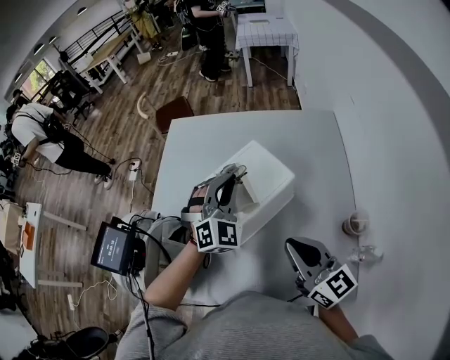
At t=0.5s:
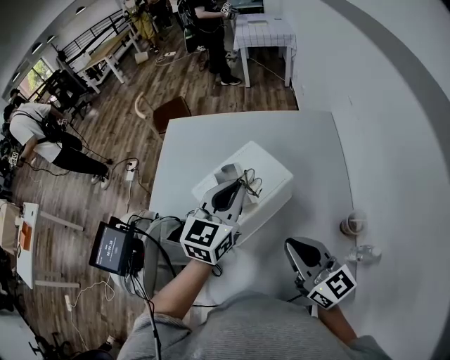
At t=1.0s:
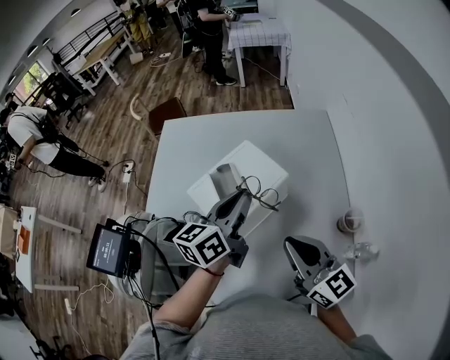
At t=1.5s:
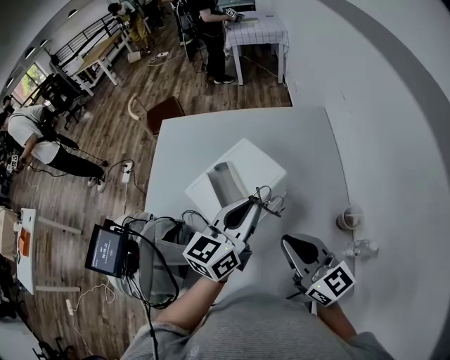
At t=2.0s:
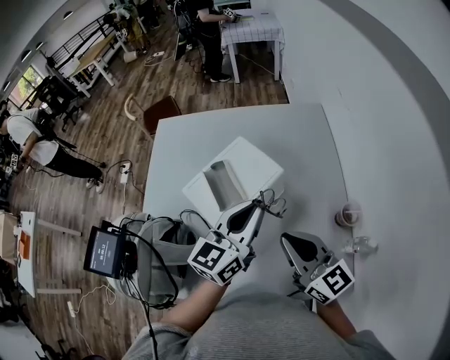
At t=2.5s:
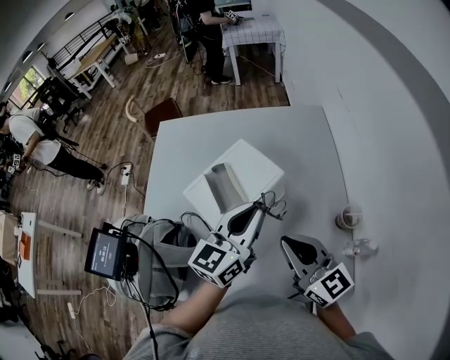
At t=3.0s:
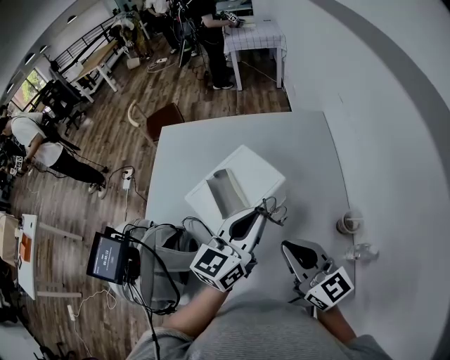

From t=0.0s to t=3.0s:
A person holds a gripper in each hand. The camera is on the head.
From t=0.0s to t=1.5s: The left gripper goes roughly 10 cm backward and to the right, and rolls counterclockwise, seen from behind, by some 70 degrees.
From t=1.5s to t=3.0s: The grippers move only a little.

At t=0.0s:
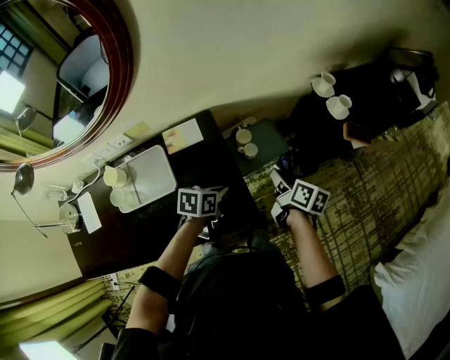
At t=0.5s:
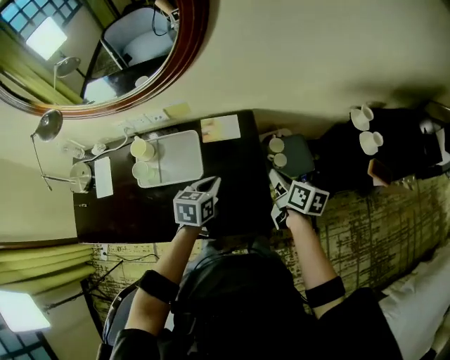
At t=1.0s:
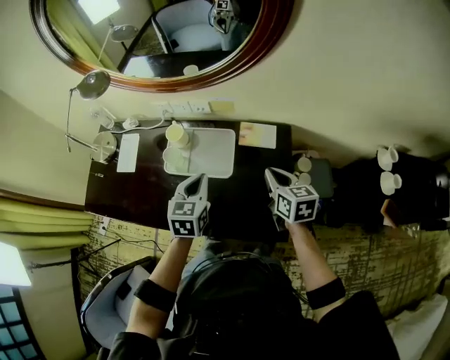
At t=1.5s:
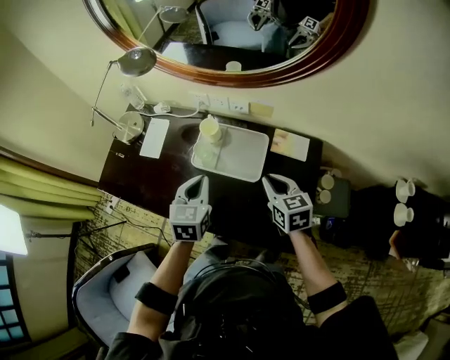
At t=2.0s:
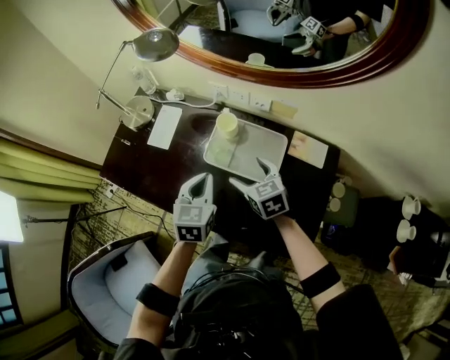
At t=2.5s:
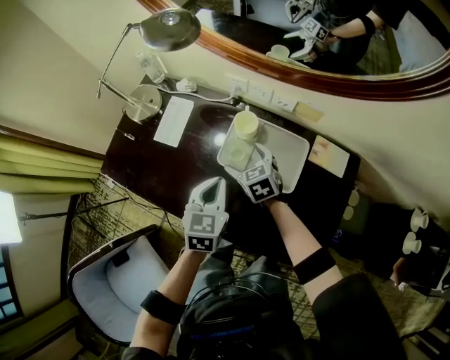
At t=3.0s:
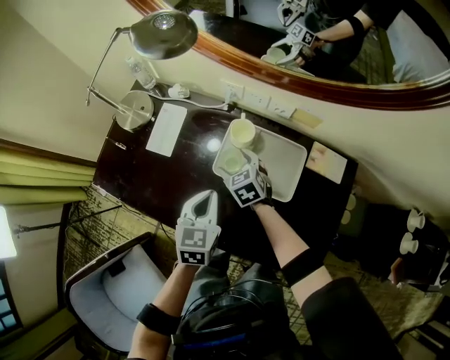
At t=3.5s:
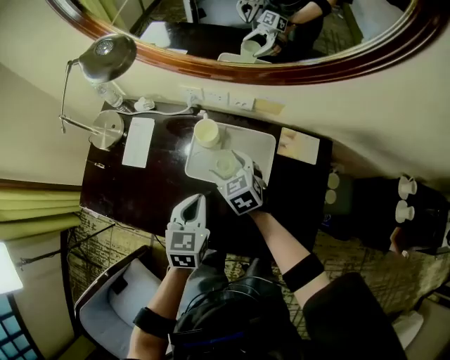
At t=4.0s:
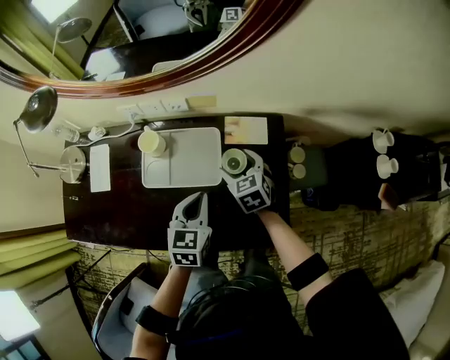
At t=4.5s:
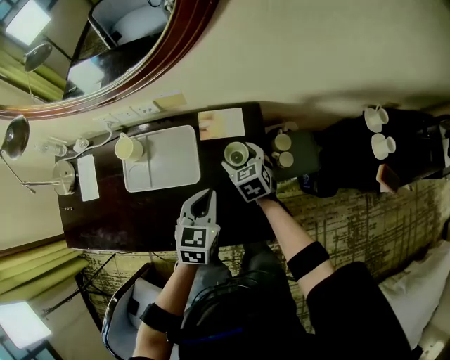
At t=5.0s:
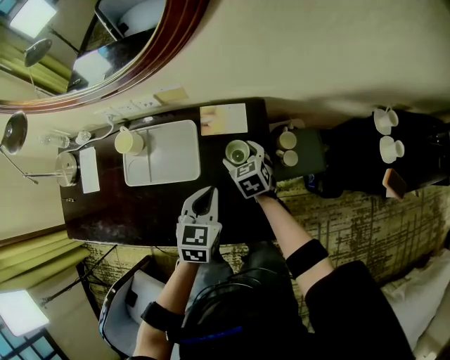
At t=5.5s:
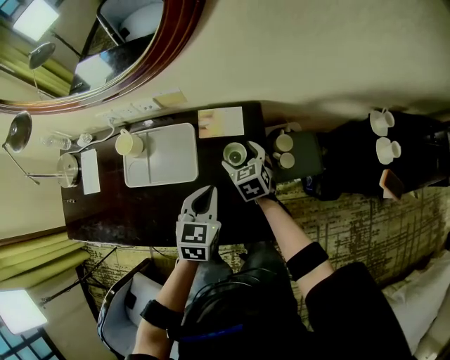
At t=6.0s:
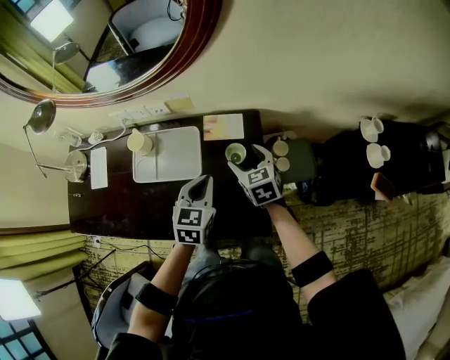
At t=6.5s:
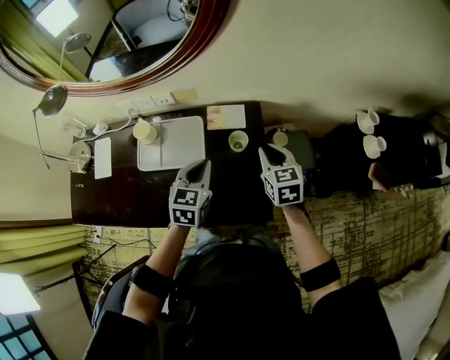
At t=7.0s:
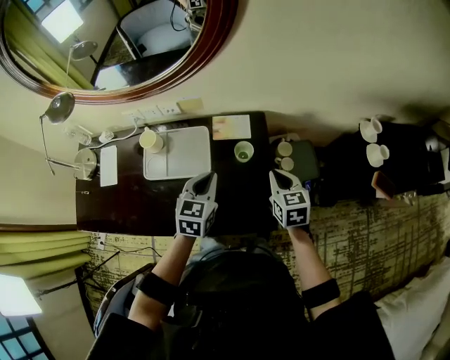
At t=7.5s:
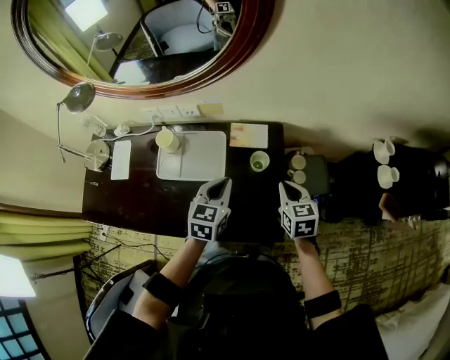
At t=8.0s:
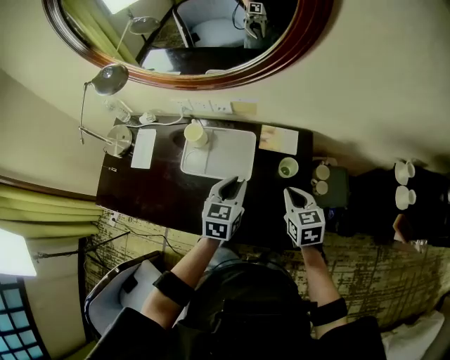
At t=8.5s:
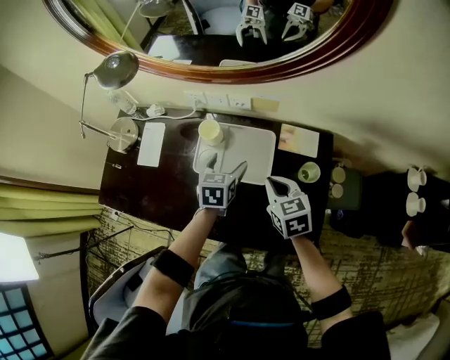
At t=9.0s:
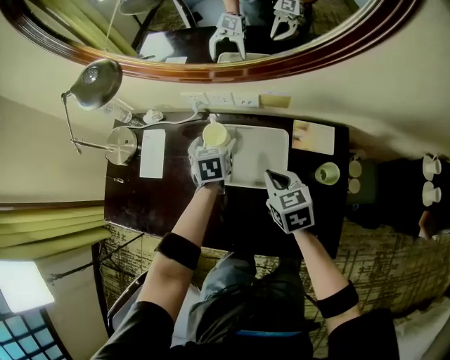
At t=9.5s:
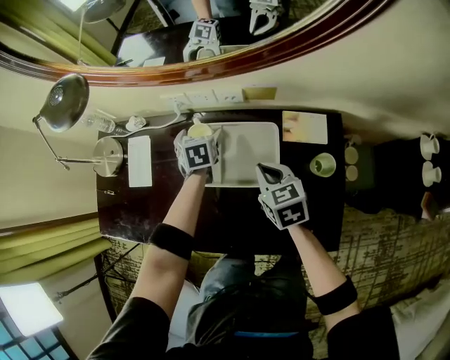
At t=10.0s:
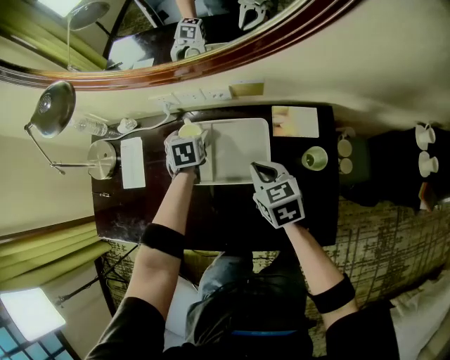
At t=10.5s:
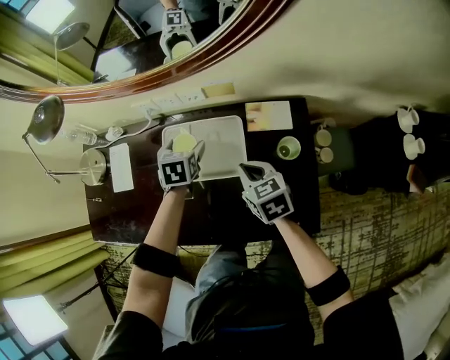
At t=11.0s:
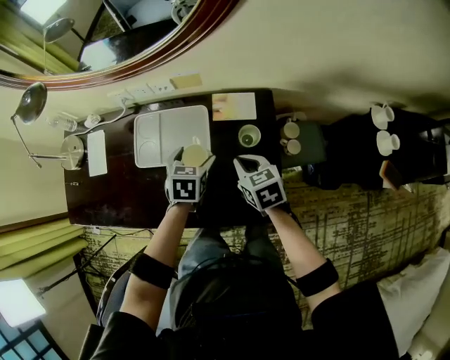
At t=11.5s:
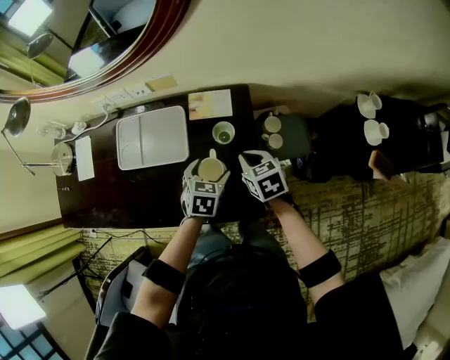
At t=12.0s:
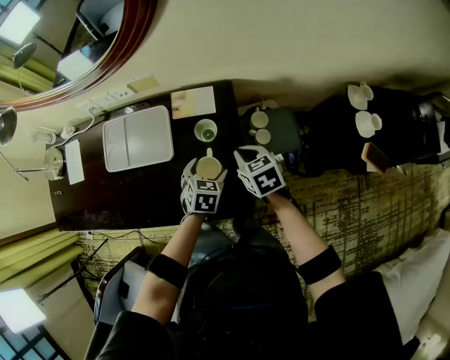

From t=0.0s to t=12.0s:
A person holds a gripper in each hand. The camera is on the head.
From t=0.0s to t=2.0s: Both grippers are carried some 50 cm. The left gripper swivels about 60 degrees. Meanwhile the right gripper rolls counterclockwise, seen from behind, by approximately 70 degrees, and opens up.
From t=2.0s to t=4.0s: The left gripper moves about 15 cm, and turns by some 20 degrees. Meanwhile the right gripper moves approximately 20 cm, and rotates roughly 20 degrees.
From t=4.0s to t=6.0s: The left gripper heads to the right, covering roughly 10 cm; the right gripper travels to the right and upward by roughly 15 cm.
From t=6.0s to t=8.0s: The right gripper is displaced backward by roughly 10 cm, goes to the right and returns, some 5 cm each way, and closes its fingers. Meanwhile the left gripper shifts about 10 cm to the left.
From t=8.0s to t=10.0s: The left gripper heads forward, to the left and downward, covering approximately 35 cm, rotates roughly 30 degrees, and opens its fingers. The right gripper goes roughly 20 cm to the left, forward and downward.
From t=10.0s to t=12.0s: The left gripper heads to the right and backward, covering roughly 50 cm, and changes its angle by some 30 degrees; the right gripper heads to the right and backward, covering about 30 cm.

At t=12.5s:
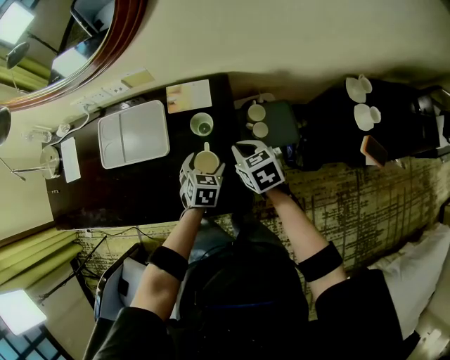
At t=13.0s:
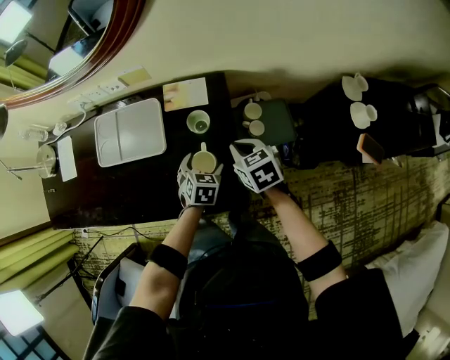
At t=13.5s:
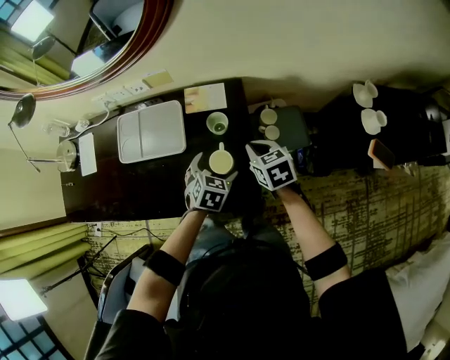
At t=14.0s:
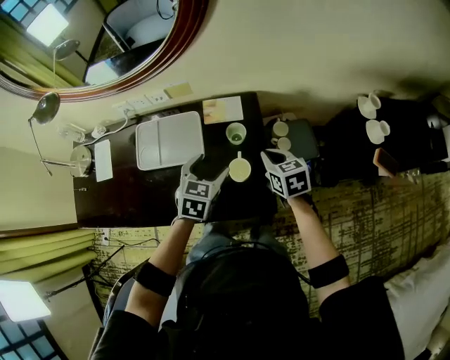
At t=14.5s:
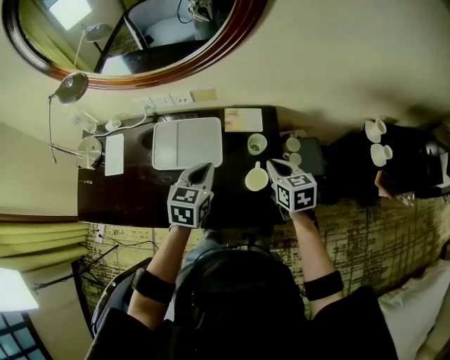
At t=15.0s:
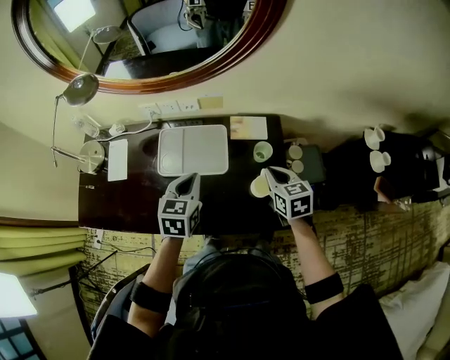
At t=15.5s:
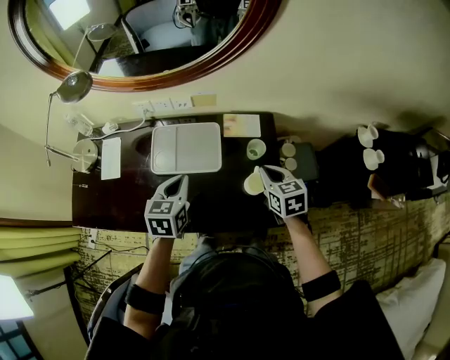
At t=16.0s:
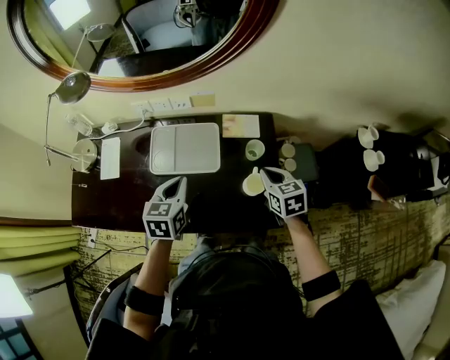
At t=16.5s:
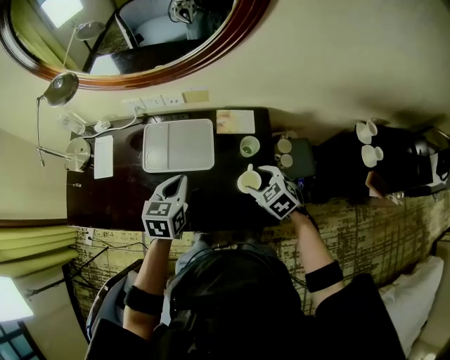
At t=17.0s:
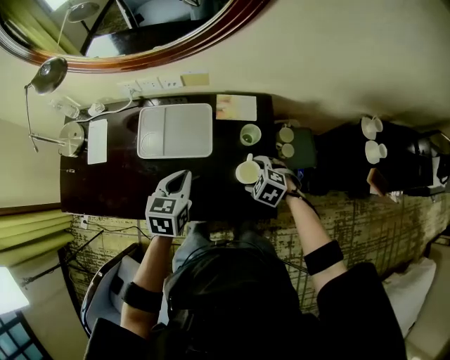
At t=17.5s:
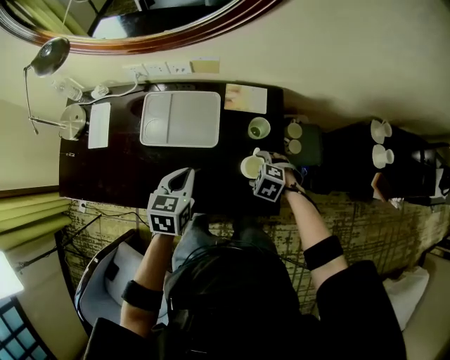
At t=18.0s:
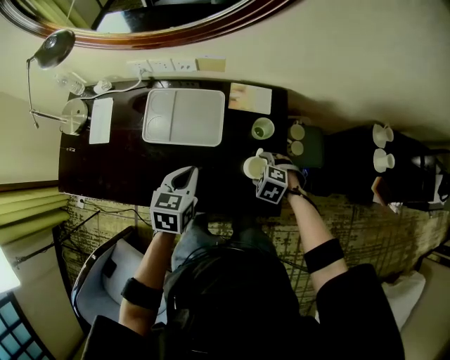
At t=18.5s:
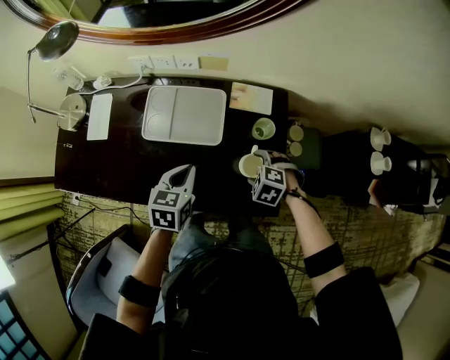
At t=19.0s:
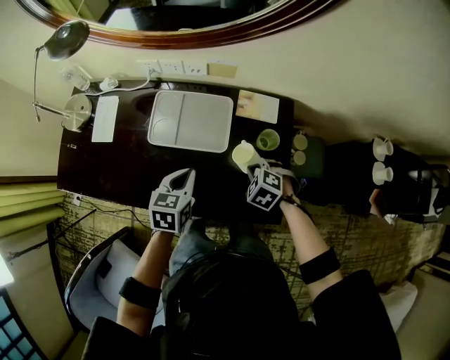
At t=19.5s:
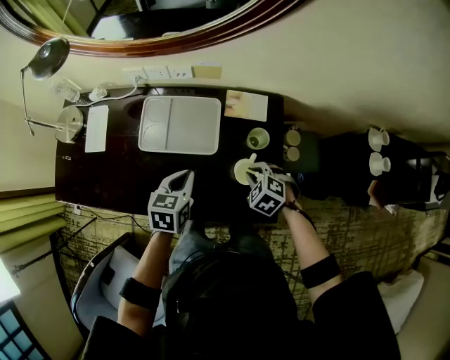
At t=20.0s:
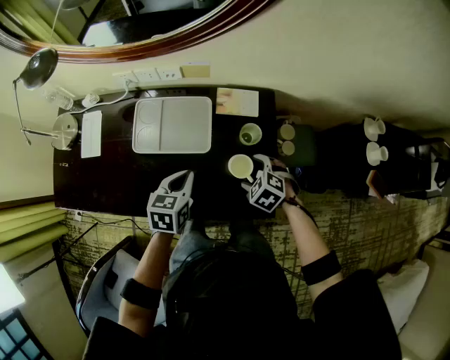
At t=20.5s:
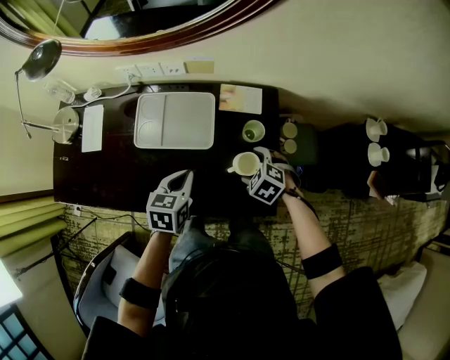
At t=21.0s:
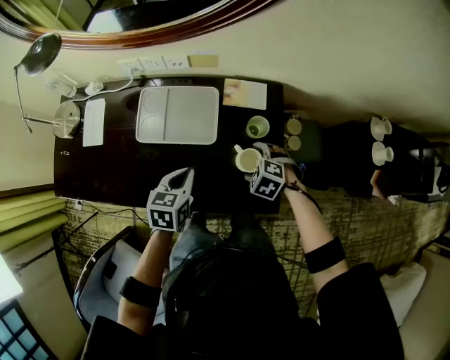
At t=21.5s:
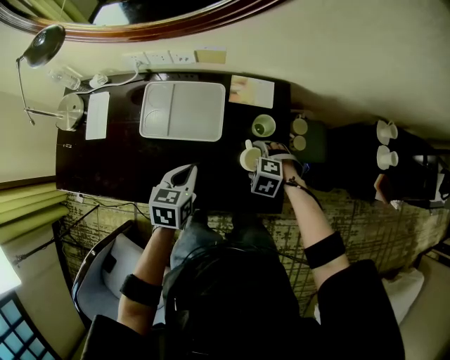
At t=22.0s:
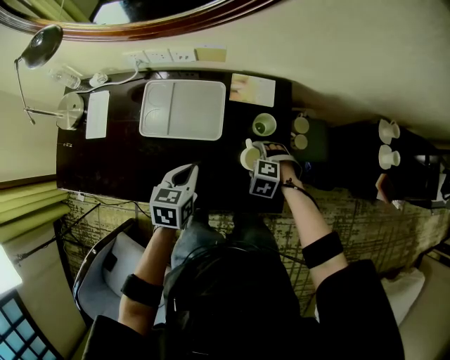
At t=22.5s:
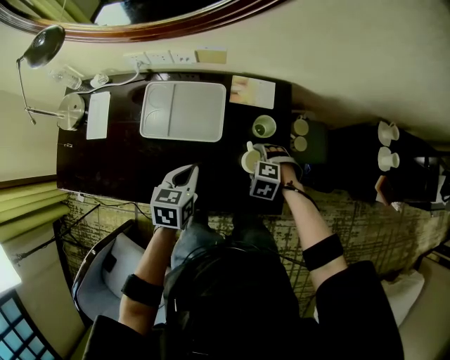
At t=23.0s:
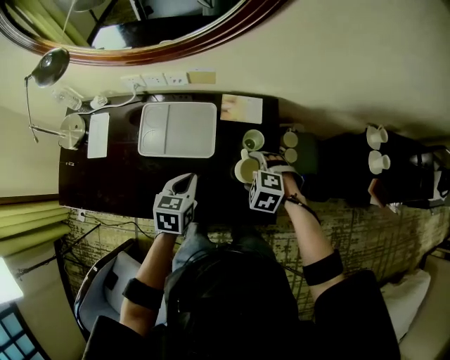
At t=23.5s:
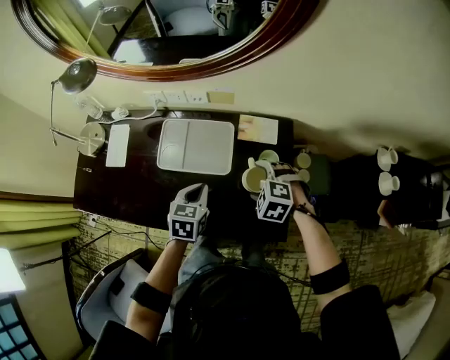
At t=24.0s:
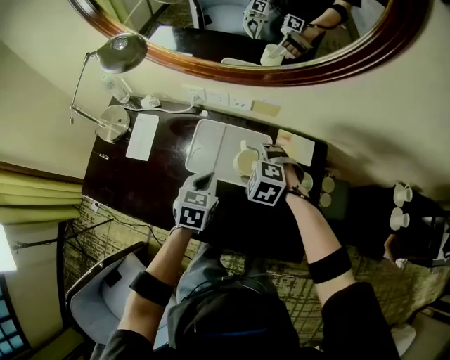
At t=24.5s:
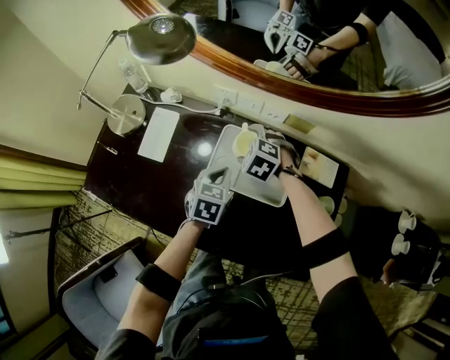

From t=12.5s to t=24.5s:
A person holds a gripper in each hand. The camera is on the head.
From t=12.5s to t=14.5s: The left gripper goes about 30 cm upward and to the left, changes its angle by some 20 degrees, and closes its fingers; the right gripper heads upward and to the left, covering about 15 cm.
From t=14.5s to t=16.5s: The right gripper moves downward, about 5 cm, swivels some 40 degrees, and opens up. Meanwhile the left gripper is displaced to the left by approximately 5 cm.
From t=16.5s to t=18.5s: Both grippers travel together downward, some 10 cm. The right gripper rotates about 40 degrees.
From t=18.5s to t=20.5s: The right gripper closes and opens again.
From t=20.5s to t=22.5s: The right gripper swivels approximately 20 degrees.
From t=22.5s to t=24.5s: The right gripper moves approximately 40 cm; the left gripper ends up approximately 20 cm from where it was.
